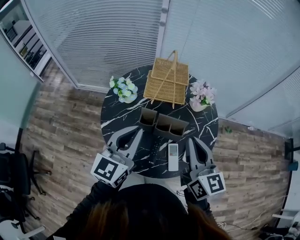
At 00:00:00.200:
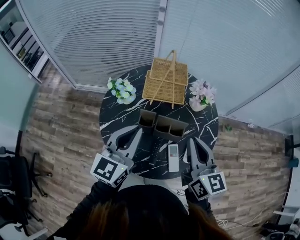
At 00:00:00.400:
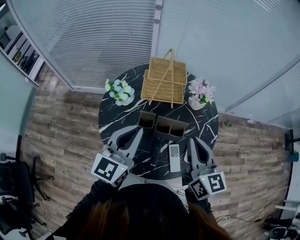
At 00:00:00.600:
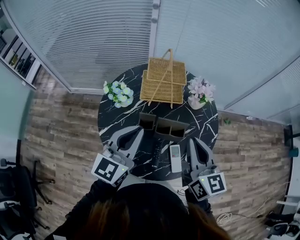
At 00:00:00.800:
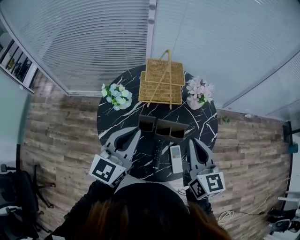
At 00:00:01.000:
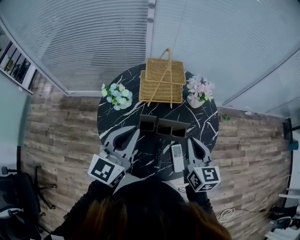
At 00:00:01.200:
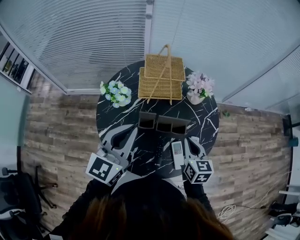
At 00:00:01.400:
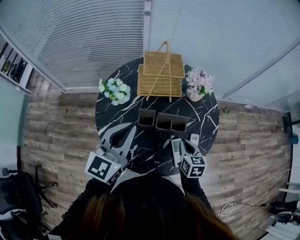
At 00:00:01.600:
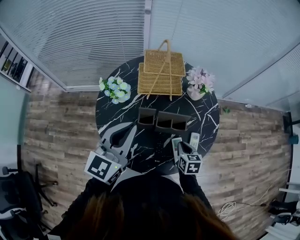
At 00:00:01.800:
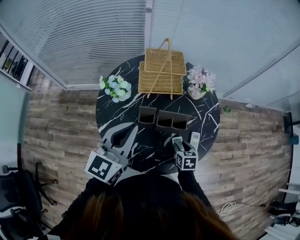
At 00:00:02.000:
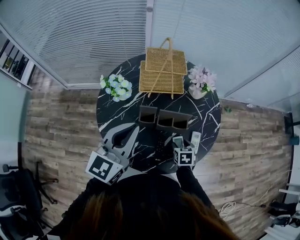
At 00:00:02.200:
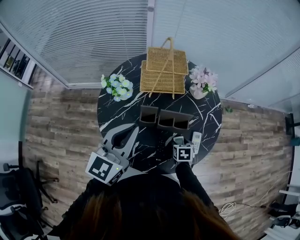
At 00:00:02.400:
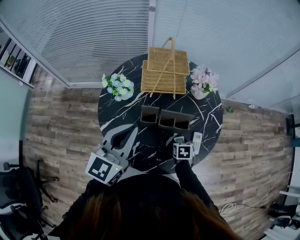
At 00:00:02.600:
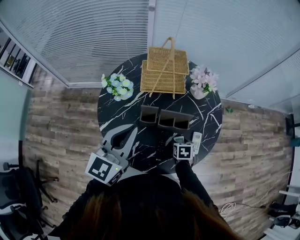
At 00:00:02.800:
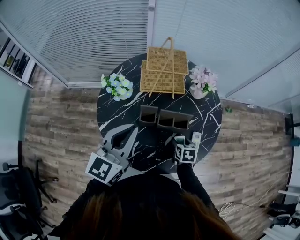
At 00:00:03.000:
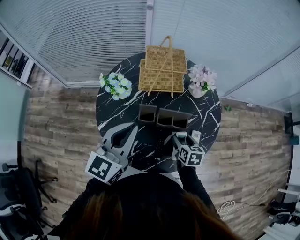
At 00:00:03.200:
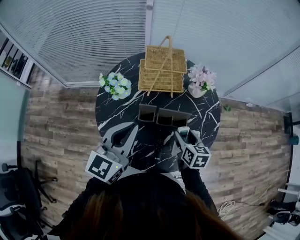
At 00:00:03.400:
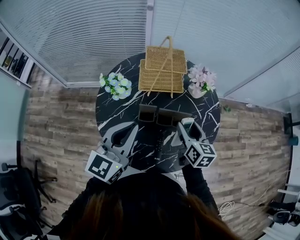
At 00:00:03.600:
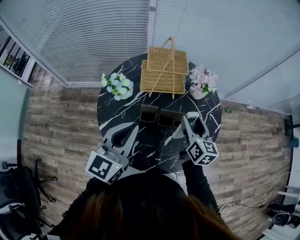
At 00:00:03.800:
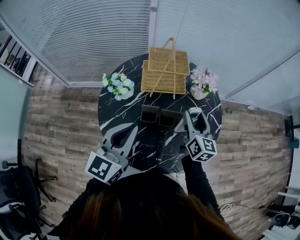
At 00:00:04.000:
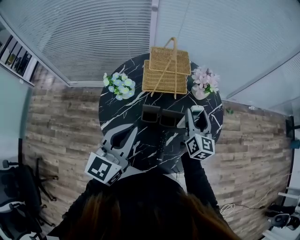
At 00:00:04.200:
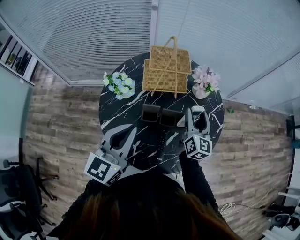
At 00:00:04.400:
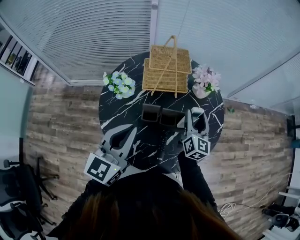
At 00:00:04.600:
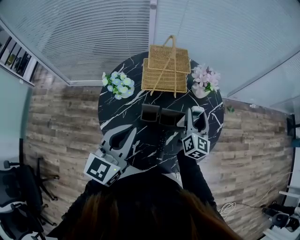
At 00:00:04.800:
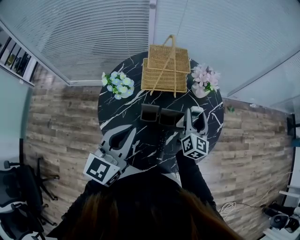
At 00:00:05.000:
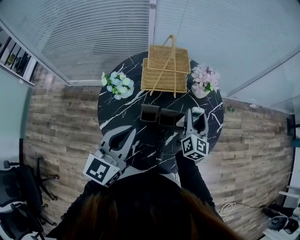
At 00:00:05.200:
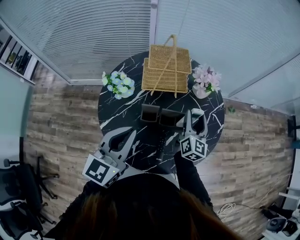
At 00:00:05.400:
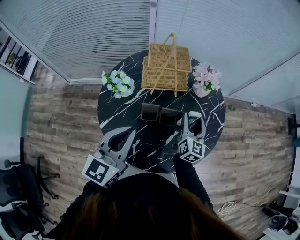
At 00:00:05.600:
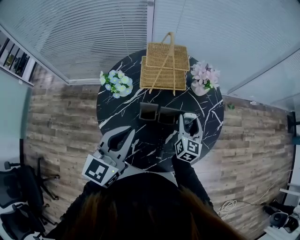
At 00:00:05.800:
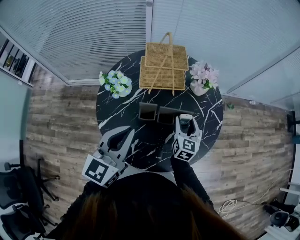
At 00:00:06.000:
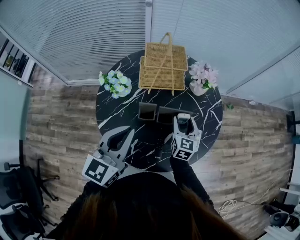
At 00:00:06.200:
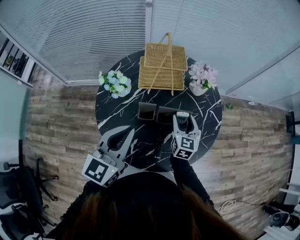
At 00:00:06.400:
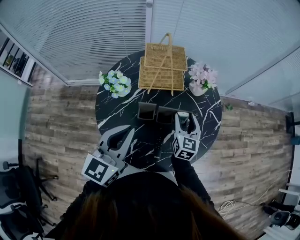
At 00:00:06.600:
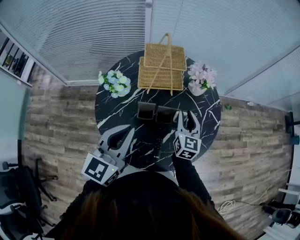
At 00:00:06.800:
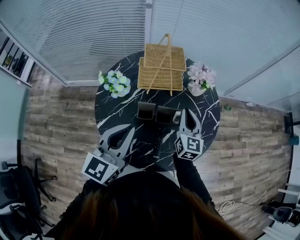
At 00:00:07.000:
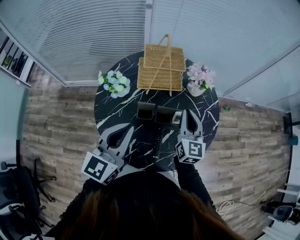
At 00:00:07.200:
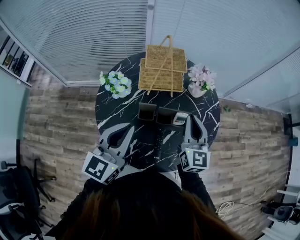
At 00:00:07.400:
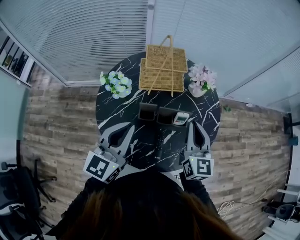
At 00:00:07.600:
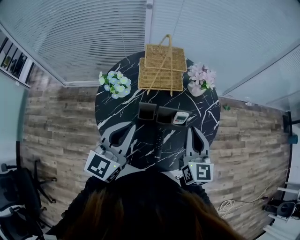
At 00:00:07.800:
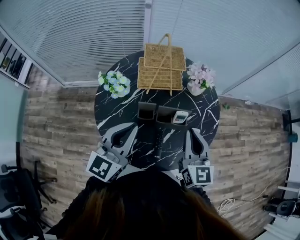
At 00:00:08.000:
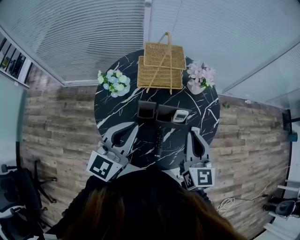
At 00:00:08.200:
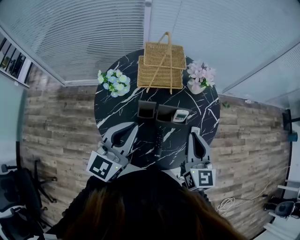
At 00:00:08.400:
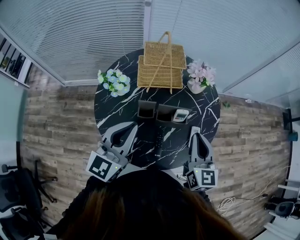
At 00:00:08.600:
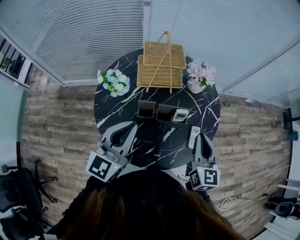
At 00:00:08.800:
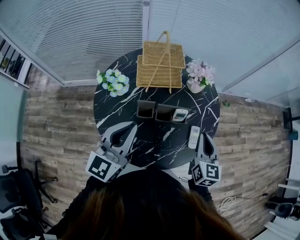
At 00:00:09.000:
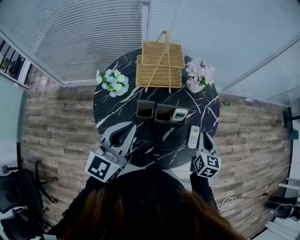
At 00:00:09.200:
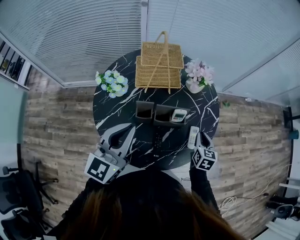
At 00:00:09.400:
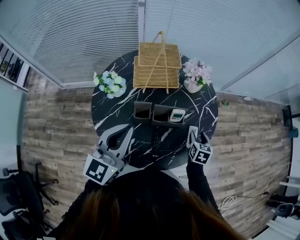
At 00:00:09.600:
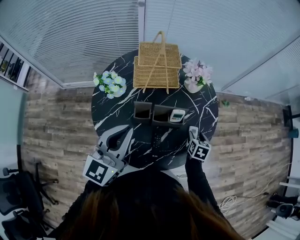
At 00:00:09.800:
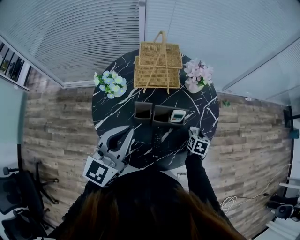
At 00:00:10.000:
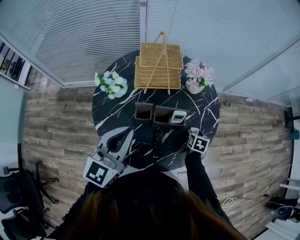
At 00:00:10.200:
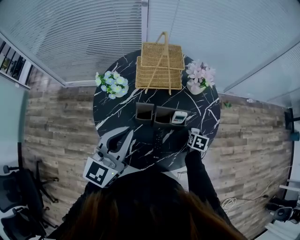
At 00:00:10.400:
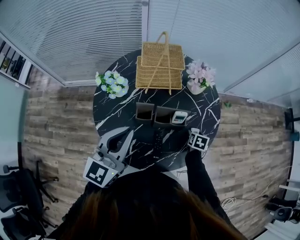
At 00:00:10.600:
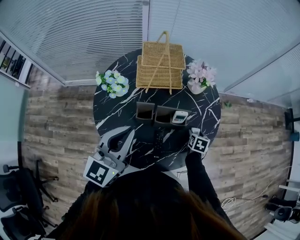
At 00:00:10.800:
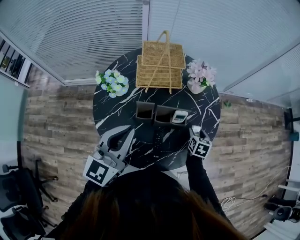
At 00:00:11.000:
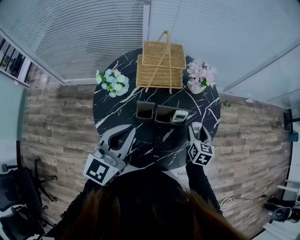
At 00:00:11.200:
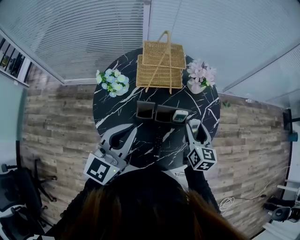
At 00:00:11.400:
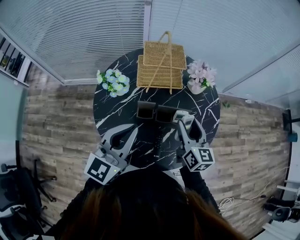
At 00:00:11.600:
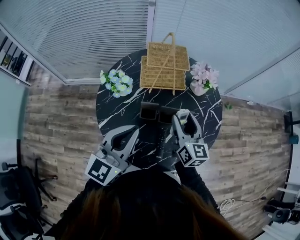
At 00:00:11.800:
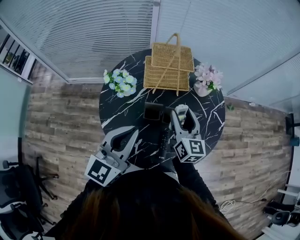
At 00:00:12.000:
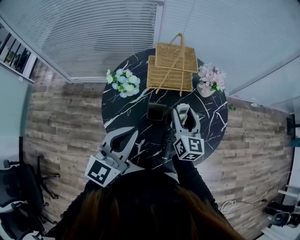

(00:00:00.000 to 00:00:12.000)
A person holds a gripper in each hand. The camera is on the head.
00:00:00.000 - 00:00:01.600: The left gripper changes place by about 5 cm; the right gripper shifts approximately 30 cm downward, and tips its fingers downward by some 40 degrees.
00:00:01.600 - 00:00:03.000: The right gripper moves approximately 5 cm downward and comes back, and opens.
00:00:03.000 - 00:00:04.400: The right gripper moves upward and forward, approximately 15 cm, and angles its fingers upward, by roughly 40 degrees.
00:00:04.400 - 00:00:06.000: The right gripper shifts approximately 5 cm downward.
00:00:06.000 - 00:00:07.600: The right gripper moves upward and backward, about 15 cm, and closes its fingers.
00:00:07.600 - 00:00:09.000: The right gripper goes about 15 cm downward and to the right, and rotates roughly 20 degrees.
00:00:09.000 - 00:00:10.400: The right gripper is displaced downward by roughly 20 cm, angles its fingers downward, by roughly 30 degrees, and opens its fingers.
00:00:10.400 - 00:00:12.000: The right gripper travels upward and to the left by about 30 cm, and tilts its fingers approximately 50 degrees upward.

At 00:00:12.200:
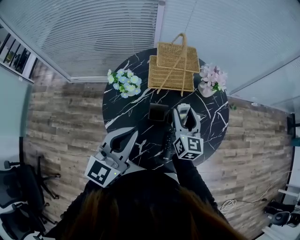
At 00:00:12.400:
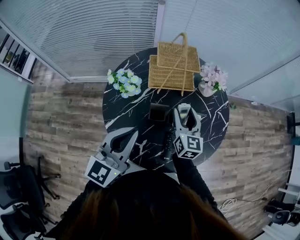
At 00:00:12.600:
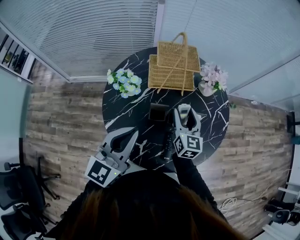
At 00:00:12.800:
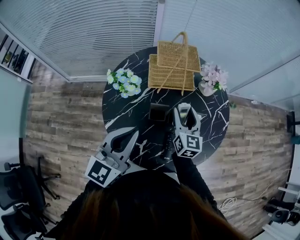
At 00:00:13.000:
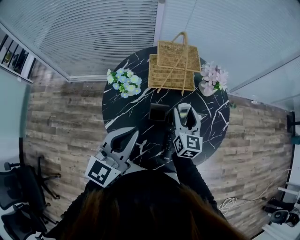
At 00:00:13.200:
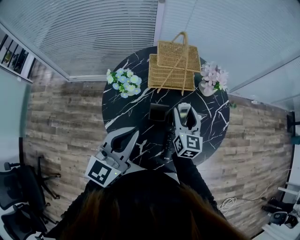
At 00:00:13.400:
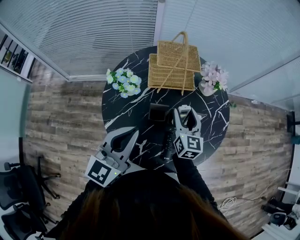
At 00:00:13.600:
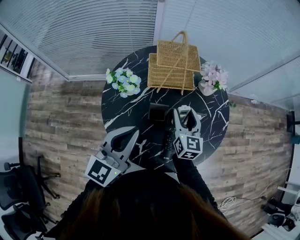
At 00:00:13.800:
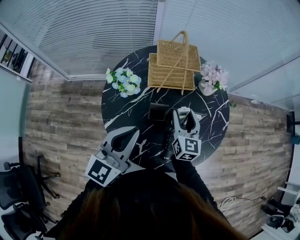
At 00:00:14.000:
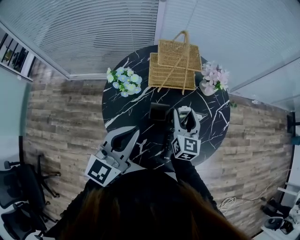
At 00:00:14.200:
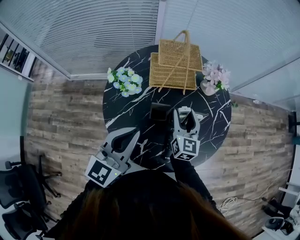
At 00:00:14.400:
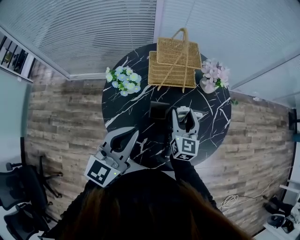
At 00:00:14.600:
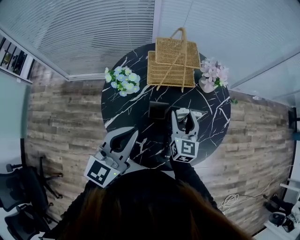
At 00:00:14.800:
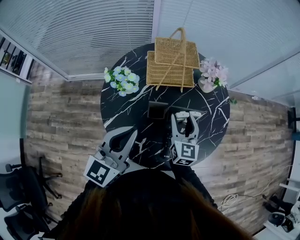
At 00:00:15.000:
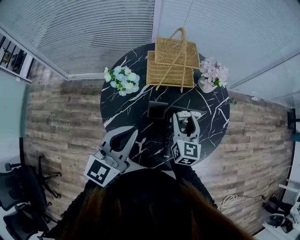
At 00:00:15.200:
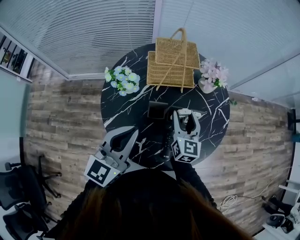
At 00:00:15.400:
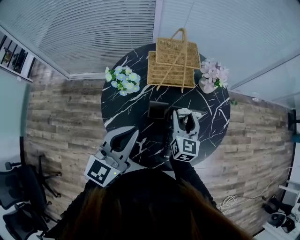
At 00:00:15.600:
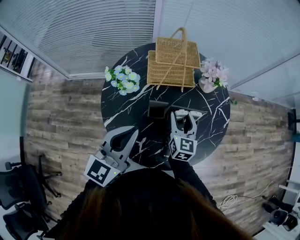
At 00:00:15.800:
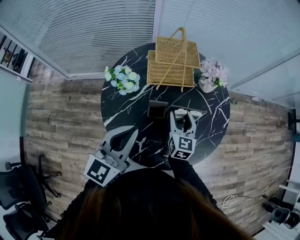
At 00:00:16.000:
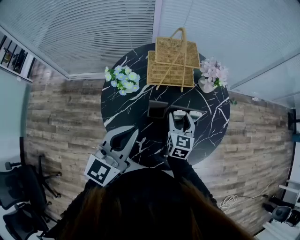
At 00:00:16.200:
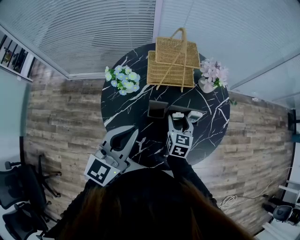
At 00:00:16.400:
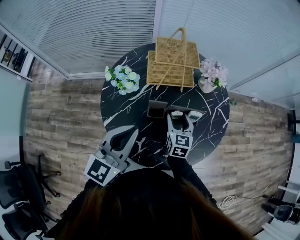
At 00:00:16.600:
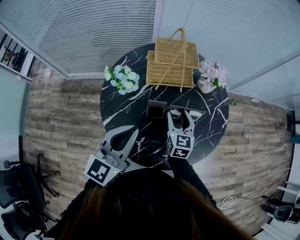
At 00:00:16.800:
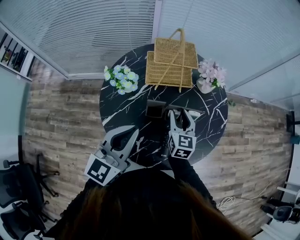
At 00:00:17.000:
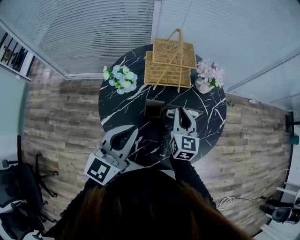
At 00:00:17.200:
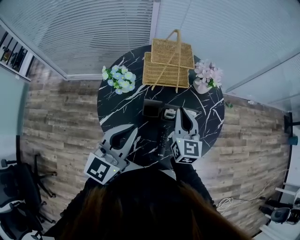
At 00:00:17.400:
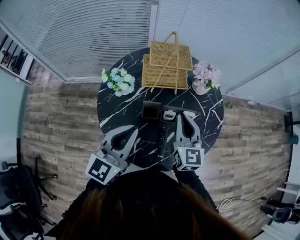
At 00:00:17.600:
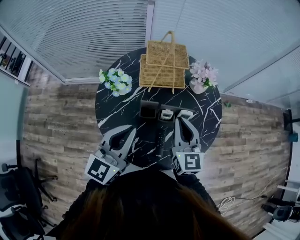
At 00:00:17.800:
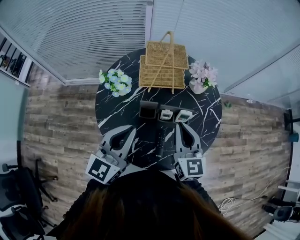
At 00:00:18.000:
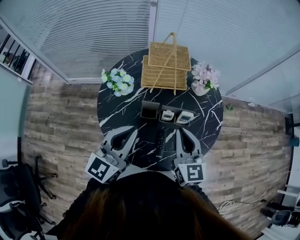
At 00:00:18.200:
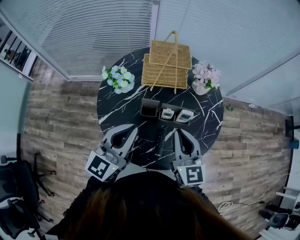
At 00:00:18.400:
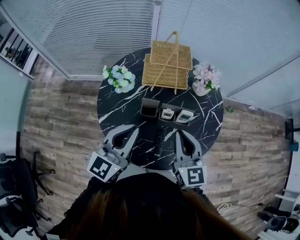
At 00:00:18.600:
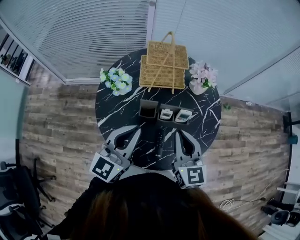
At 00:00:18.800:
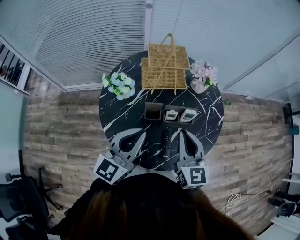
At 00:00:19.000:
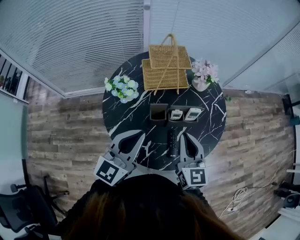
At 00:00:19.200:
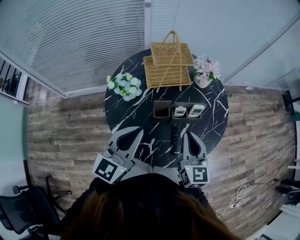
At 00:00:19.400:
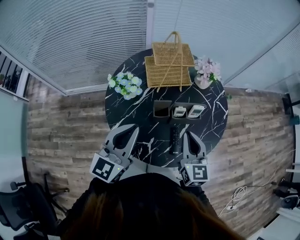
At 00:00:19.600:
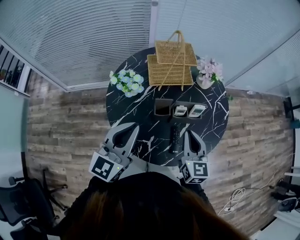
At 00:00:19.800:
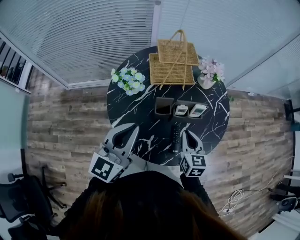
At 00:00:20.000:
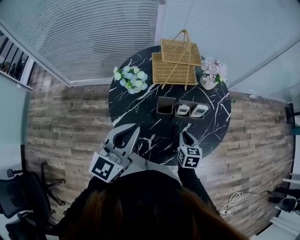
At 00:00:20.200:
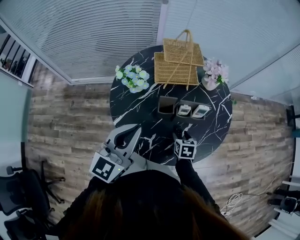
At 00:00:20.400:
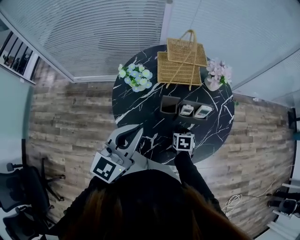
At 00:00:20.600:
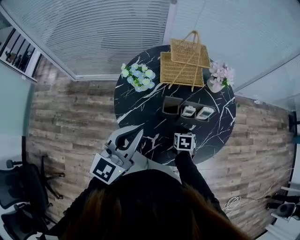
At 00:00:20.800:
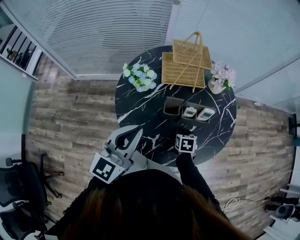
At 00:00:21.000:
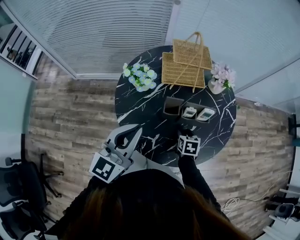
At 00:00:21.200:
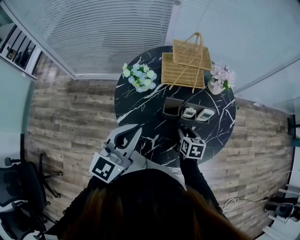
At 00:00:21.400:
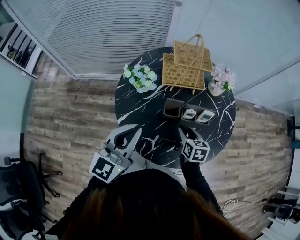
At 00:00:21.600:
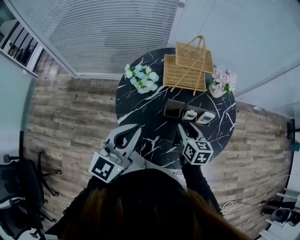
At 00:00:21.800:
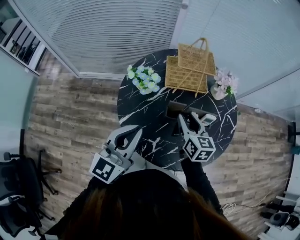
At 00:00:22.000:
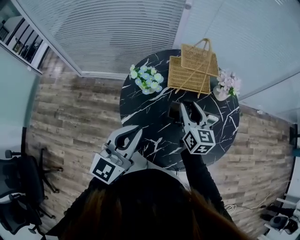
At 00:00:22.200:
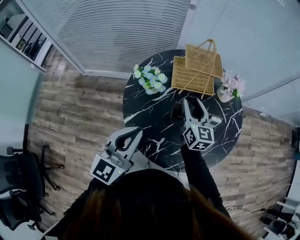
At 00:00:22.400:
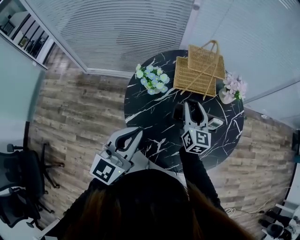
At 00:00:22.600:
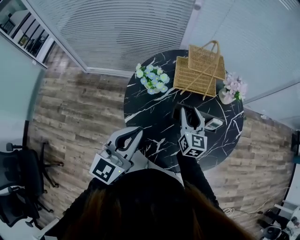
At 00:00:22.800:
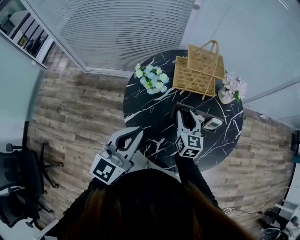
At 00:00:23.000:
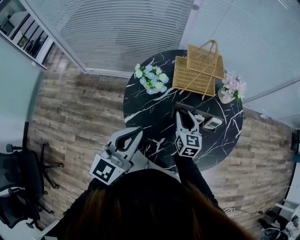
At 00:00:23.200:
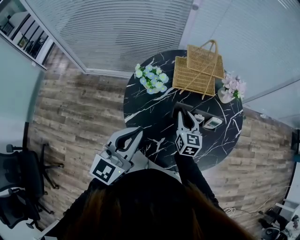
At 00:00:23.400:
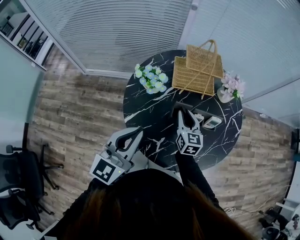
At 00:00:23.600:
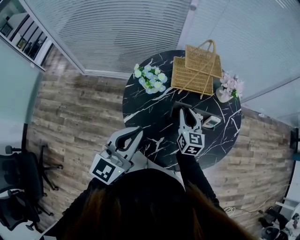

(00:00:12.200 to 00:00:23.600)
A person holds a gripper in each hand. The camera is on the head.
00:00:12.200 - 00:00:15.000: The grippers stay close to where they were, moving slightly.
00:00:15.000 - 00:00:16.400: The right gripper travels downward by approximately 5 cm.
00:00:16.400 - 00:00:17.800: The right gripper heads upward and backward, covering about 15 cm, changes its angle by approximately 20 degrees, and closes up.
00:00:17.800 - 00:00:19.400: The left gripper moves to the left, approximately 5 cm. The right gripper heads backward, covering roughly 5 cm.
00:00:19.400 - 00:00:20.800: The right gripper moves downward, approximately 25 cm, tilts its fingers about 50 degrees downward, and opens.
00:00:20.800 - 00:00:22.200: The right gripper heads upward, forward and to the left, covering approximately 25 cm, and points its fingers about 50 degrees further upward.
00:00:22.200 - 00:00:23.600: The right gripper goes about 5 cm downward.
